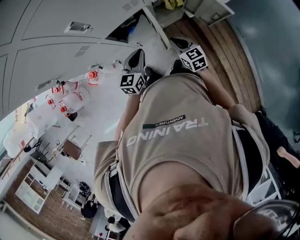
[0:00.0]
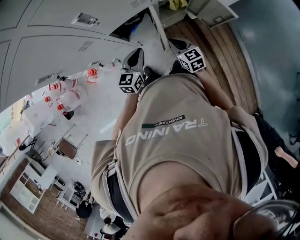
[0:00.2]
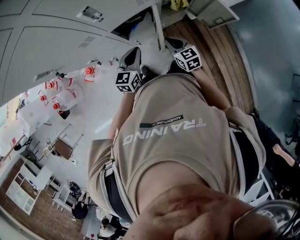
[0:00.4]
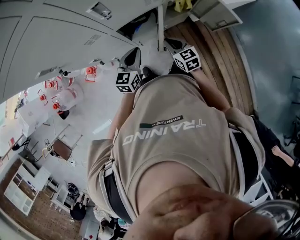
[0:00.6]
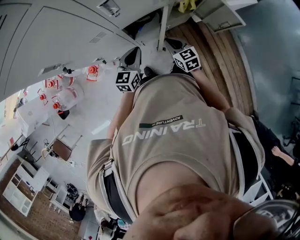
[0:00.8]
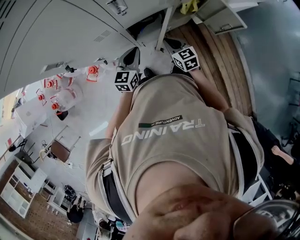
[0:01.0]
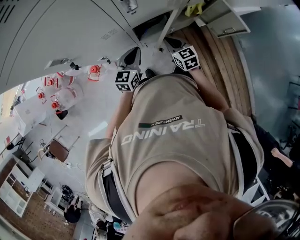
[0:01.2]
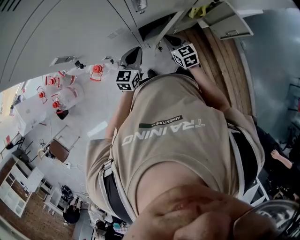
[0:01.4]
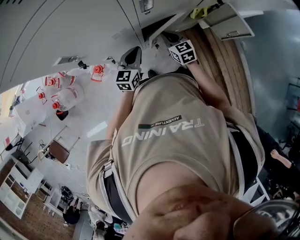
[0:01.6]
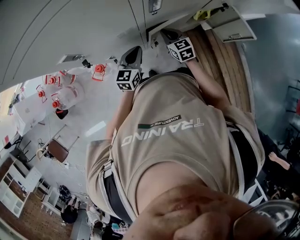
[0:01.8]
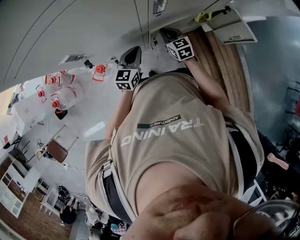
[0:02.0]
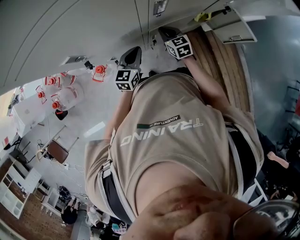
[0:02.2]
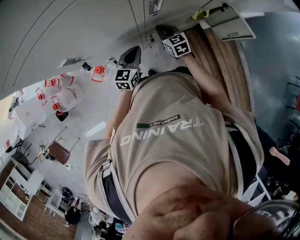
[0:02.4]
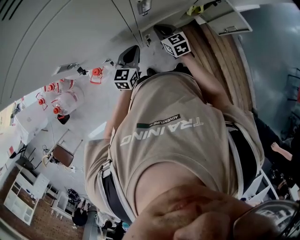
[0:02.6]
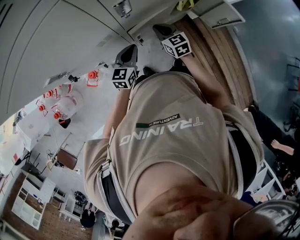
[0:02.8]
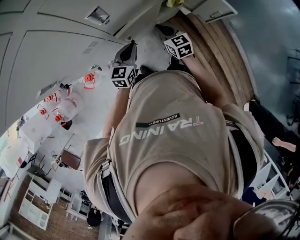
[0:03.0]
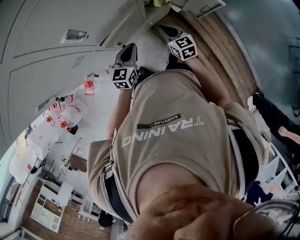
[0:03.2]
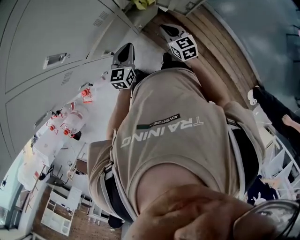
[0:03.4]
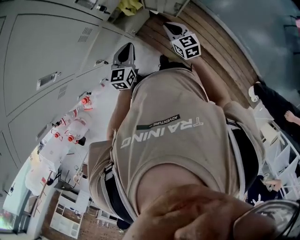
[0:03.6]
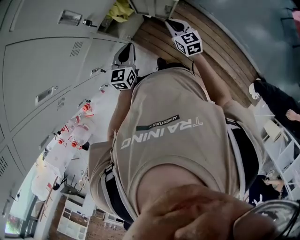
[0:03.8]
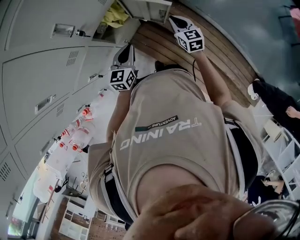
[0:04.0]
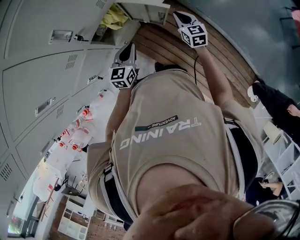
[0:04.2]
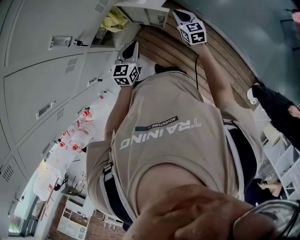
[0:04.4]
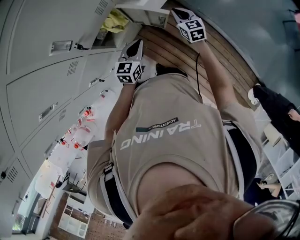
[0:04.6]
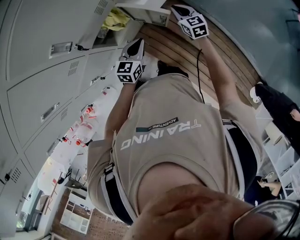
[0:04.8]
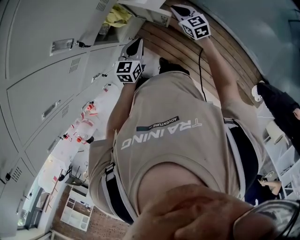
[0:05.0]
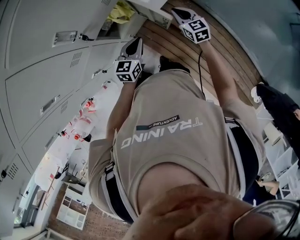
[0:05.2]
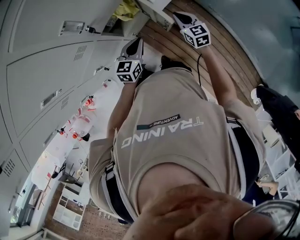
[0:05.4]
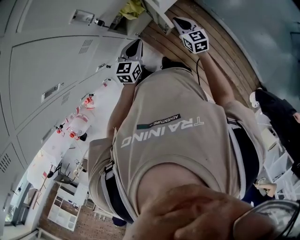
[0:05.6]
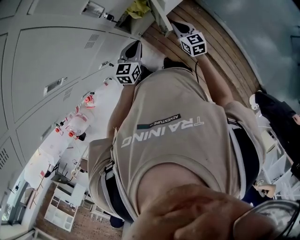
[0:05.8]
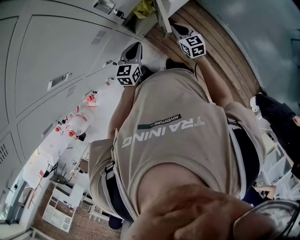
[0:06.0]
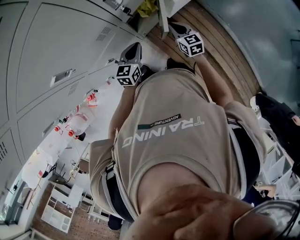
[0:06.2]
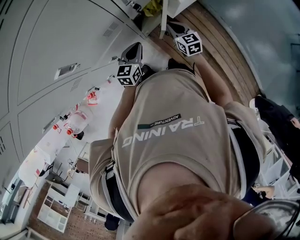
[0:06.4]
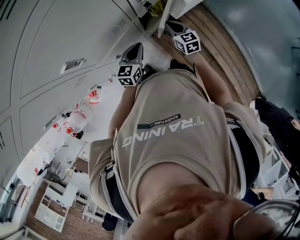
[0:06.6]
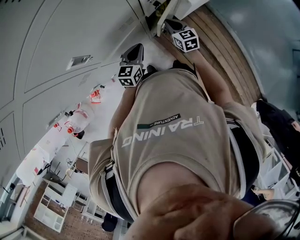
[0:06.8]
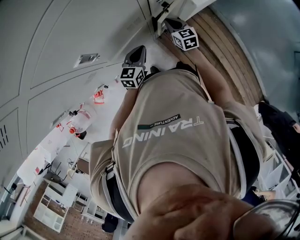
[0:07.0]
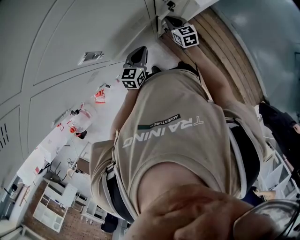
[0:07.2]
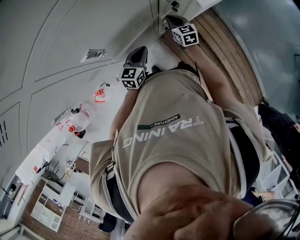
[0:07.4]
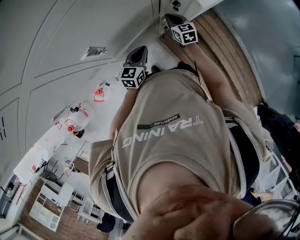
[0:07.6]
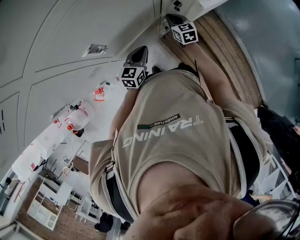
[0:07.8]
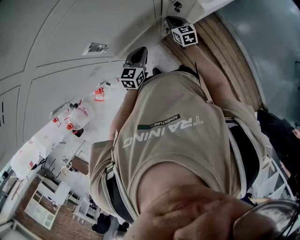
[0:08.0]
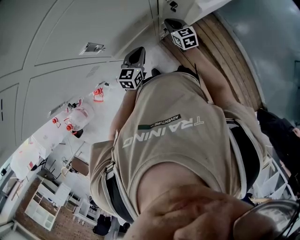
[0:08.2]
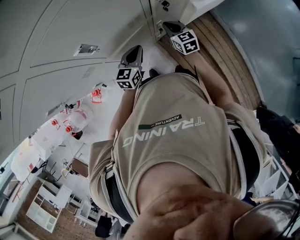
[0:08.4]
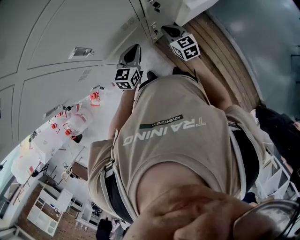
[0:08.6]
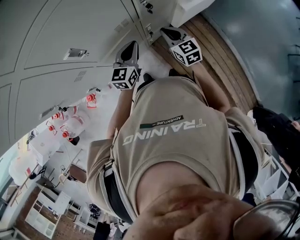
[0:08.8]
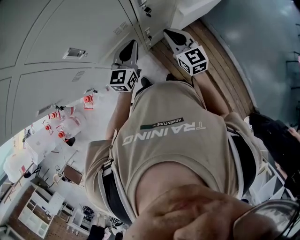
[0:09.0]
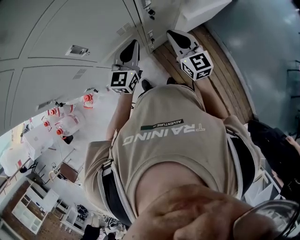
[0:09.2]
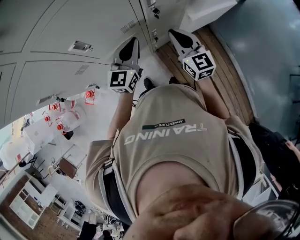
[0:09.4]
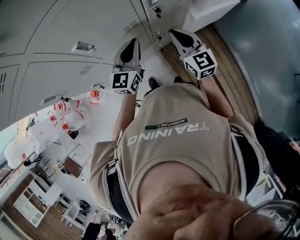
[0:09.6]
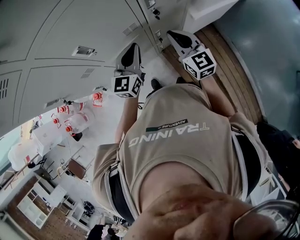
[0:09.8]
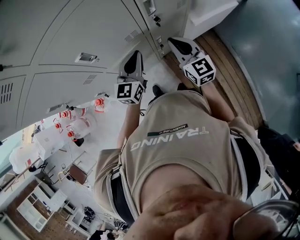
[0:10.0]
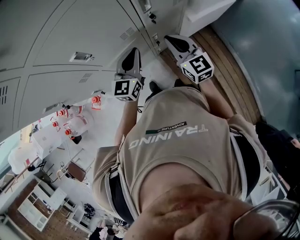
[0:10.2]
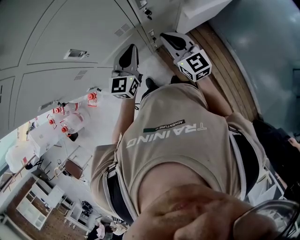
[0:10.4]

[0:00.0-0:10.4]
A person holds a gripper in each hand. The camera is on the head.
0:00.0 to 0:01.4: Both grippers travel together to the left, roughly 15 cm.
0:01.4 to 0:03.0: Both grippers move to the right, some 10 cm.
0:03.0 to 0:04.4: The right gripper heads to the right, covering roughly 50 cm, and changes its angle by approximately 30 degrees; the left gripper is displaced to the right and forward by roughly 40 cm.
0:04.4 to 0:06.0: The left gripper goes about 15 cm to the left; the right gripper moves to the left and backward, about 20 cm.
0:06.0 to 0:07.4: Both grippers travel together to the left, some 15 cm.
0:07.4 to 0:09.0: The left gripper is displaced upward and to the right by approximately 15 cm. Meanwhile the right gripper is displaced upward and backward by about 20 cm.
0:09.0 to 0:10.4: The grippers move only a little.

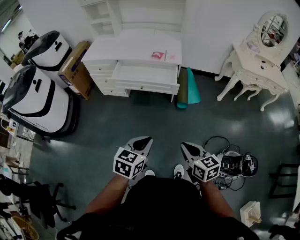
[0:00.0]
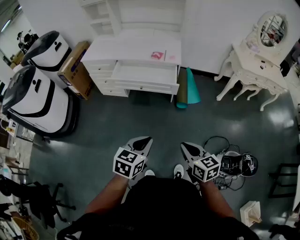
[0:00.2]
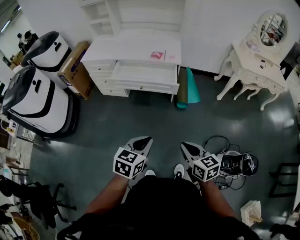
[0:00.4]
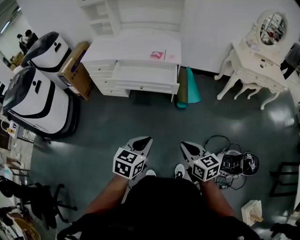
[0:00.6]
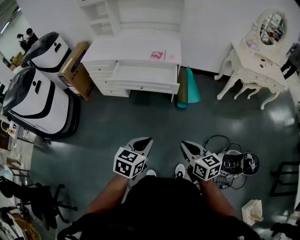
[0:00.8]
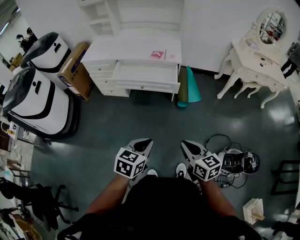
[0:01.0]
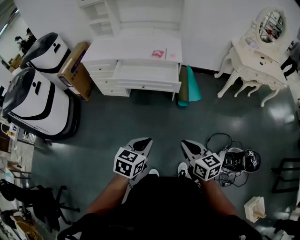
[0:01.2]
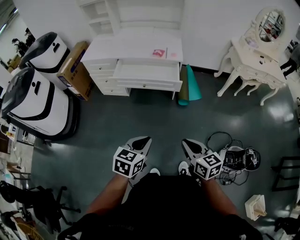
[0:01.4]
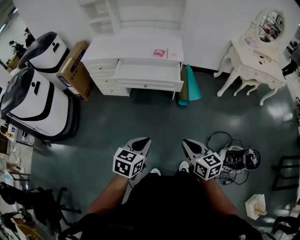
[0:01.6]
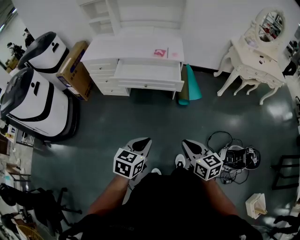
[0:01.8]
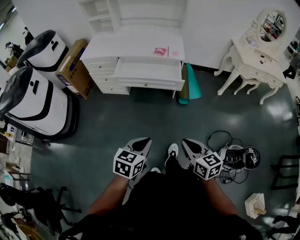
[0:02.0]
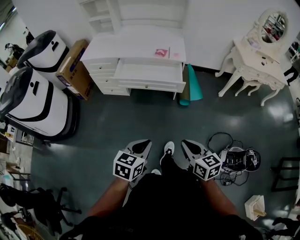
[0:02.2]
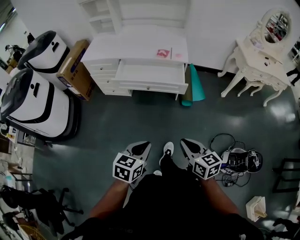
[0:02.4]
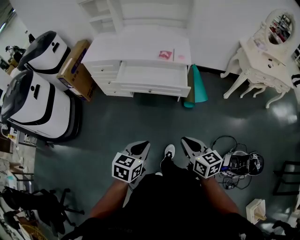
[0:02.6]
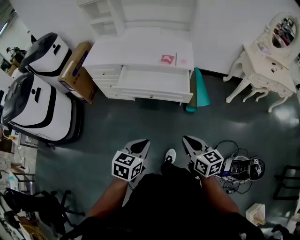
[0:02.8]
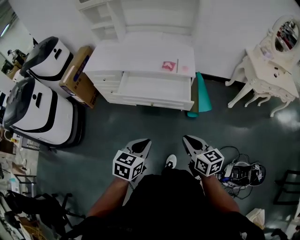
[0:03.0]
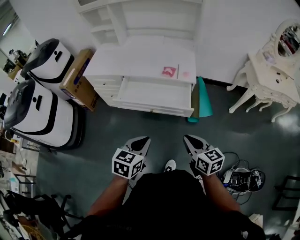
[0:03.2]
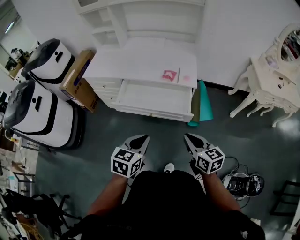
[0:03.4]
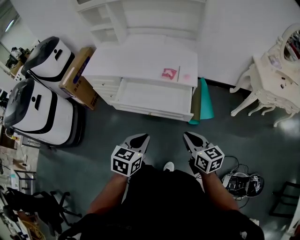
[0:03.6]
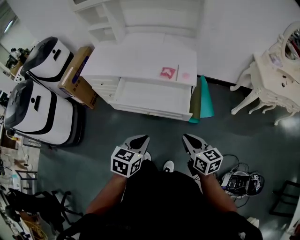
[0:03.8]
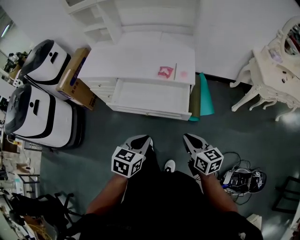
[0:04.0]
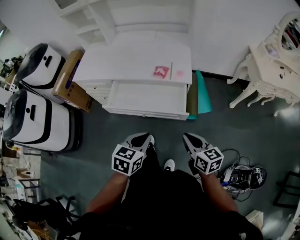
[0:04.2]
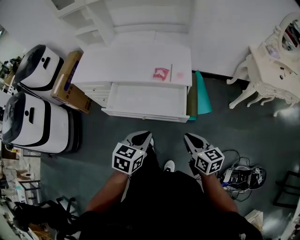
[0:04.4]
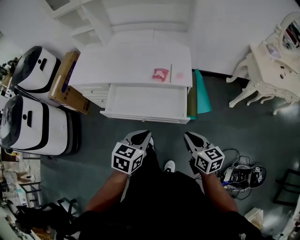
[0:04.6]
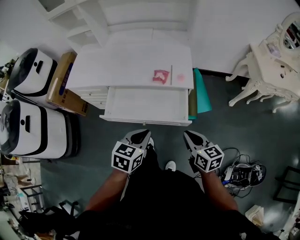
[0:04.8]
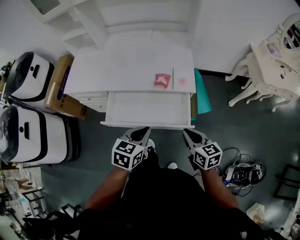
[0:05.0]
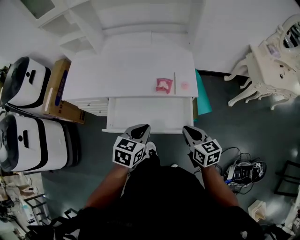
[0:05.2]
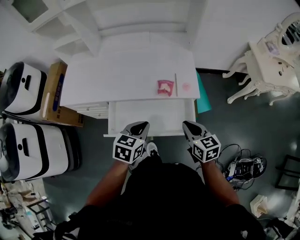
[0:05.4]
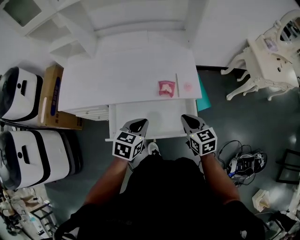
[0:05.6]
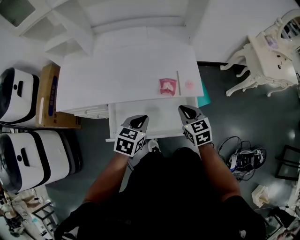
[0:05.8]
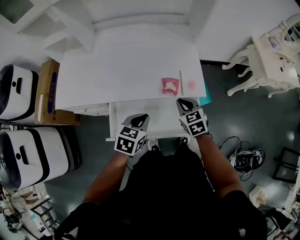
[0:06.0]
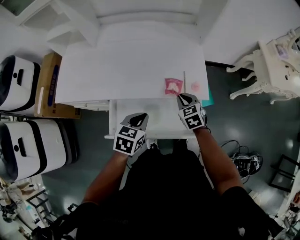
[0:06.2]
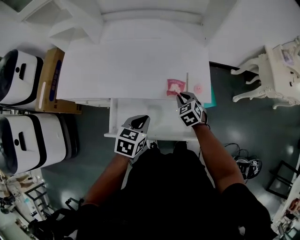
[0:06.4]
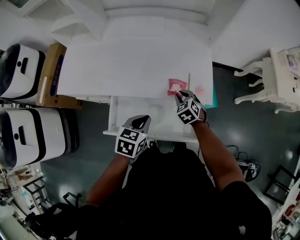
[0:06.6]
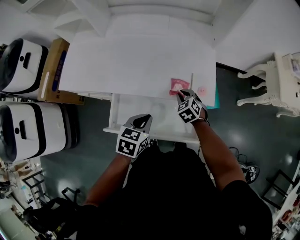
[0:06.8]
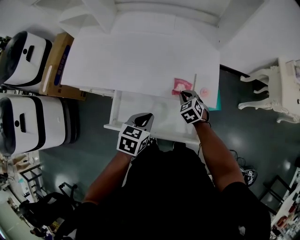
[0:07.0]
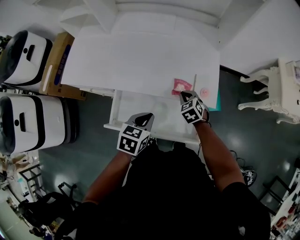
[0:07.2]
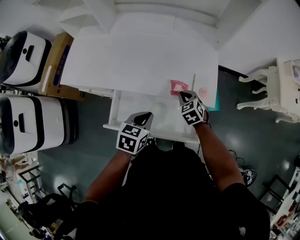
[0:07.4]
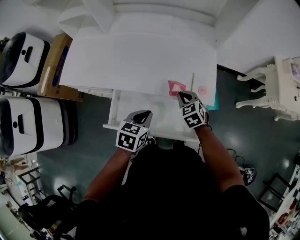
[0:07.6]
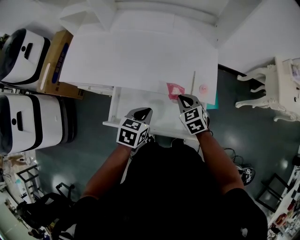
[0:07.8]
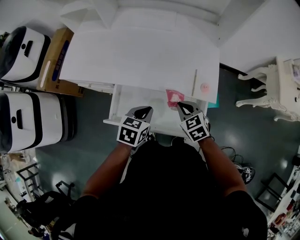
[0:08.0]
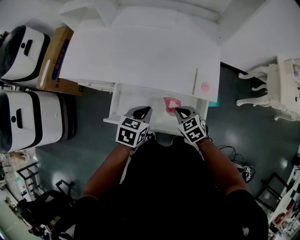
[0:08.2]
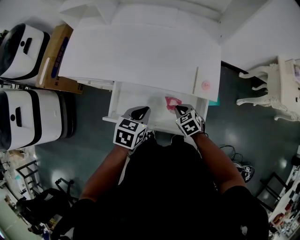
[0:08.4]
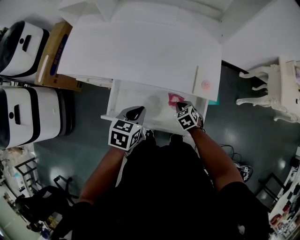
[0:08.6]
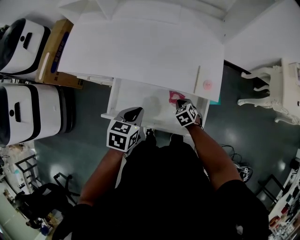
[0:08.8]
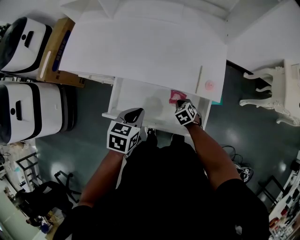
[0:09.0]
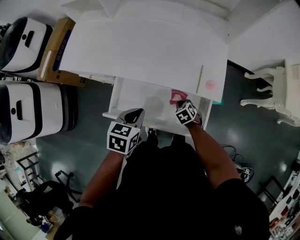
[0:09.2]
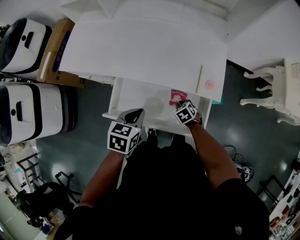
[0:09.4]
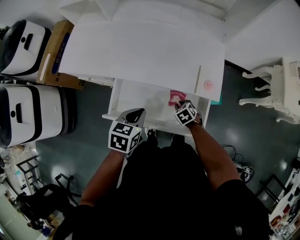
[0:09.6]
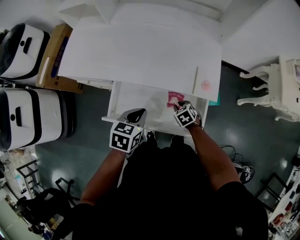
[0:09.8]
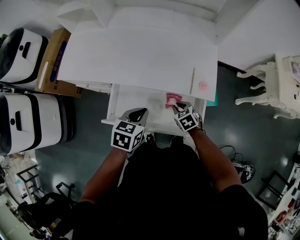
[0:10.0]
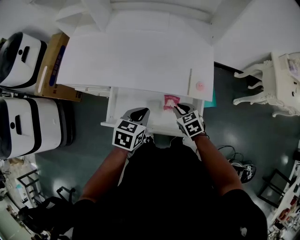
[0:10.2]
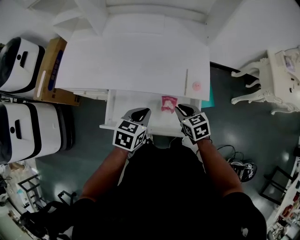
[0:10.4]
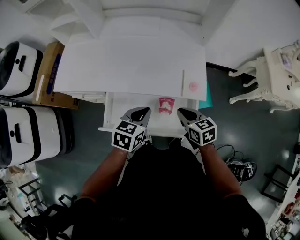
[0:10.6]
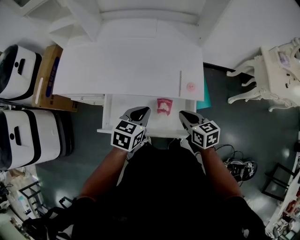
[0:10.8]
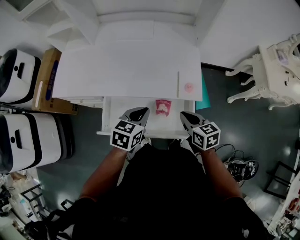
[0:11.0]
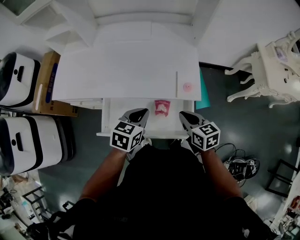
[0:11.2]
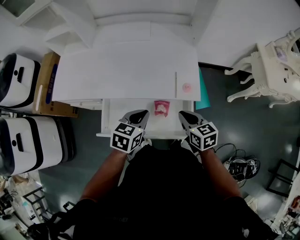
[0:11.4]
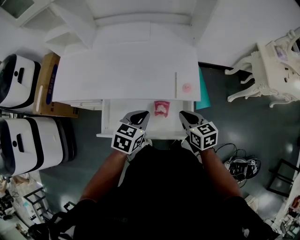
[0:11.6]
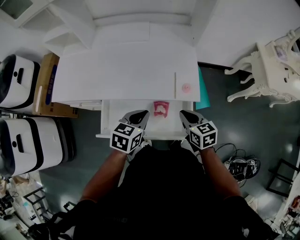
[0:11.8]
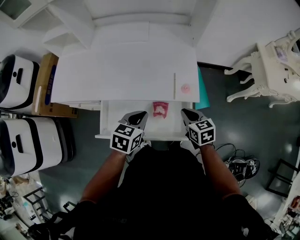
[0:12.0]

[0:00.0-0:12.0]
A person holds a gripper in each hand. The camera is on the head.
0:00.0 to 0:01.6: Both grippers move to the left, about 5 cm.
0:01.6 to 0:03.0: The two grippers go approximately 20 cm forward.
0:03.0 to 0:04.4: The left gripper moves forward, approximately 15 cm, while the right gripper shifts some 15 cm forward and to the right.
0:04.4 to 0:06.0: Both grippers move forward and to the left, some 30 cm. The right gripper swivels some 30 degrees.
0:07.6 to 0:09.0: The right gripper goes approximately 15 cm downward and backward.
0:09.0 to 0:10.4: The right gripper moves upward, roughly 15 cm, and rotates some 30 degrees. The left gripper travels to the right by about 5 cm.
0:10.4 to 0:12.0: The right gripper goes about 10 cm to the right.

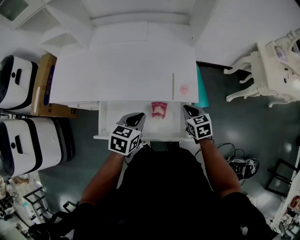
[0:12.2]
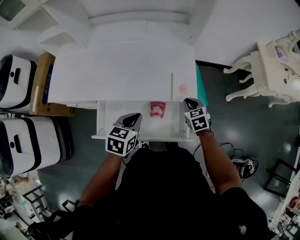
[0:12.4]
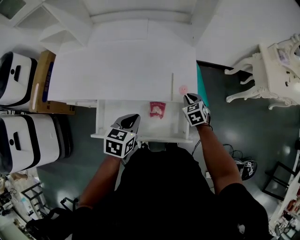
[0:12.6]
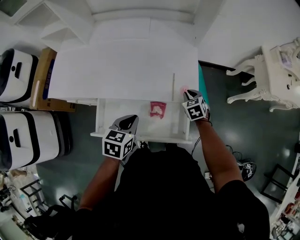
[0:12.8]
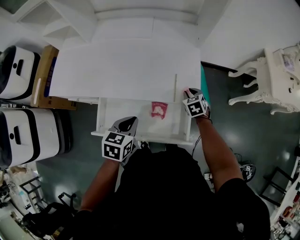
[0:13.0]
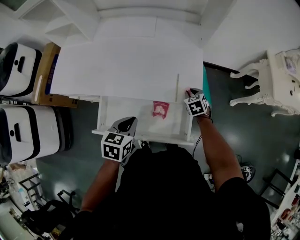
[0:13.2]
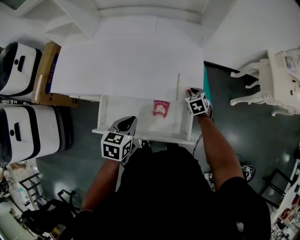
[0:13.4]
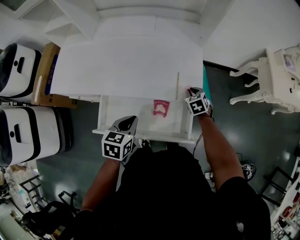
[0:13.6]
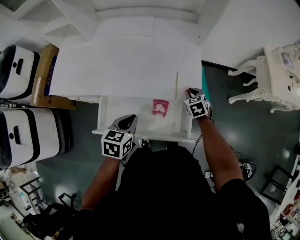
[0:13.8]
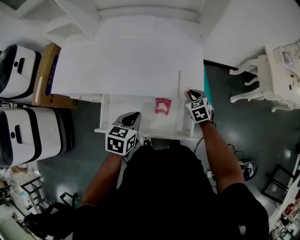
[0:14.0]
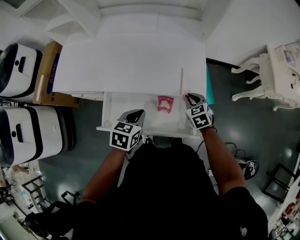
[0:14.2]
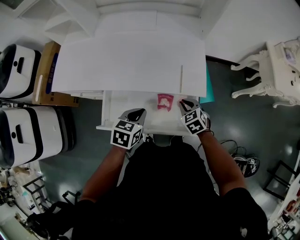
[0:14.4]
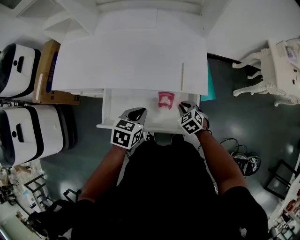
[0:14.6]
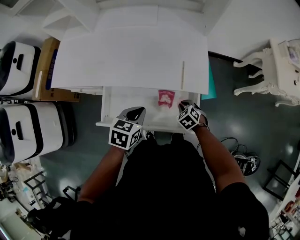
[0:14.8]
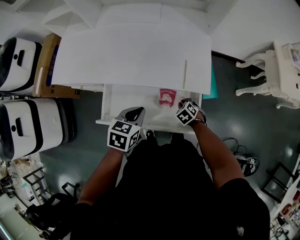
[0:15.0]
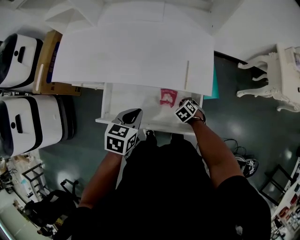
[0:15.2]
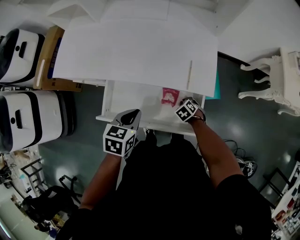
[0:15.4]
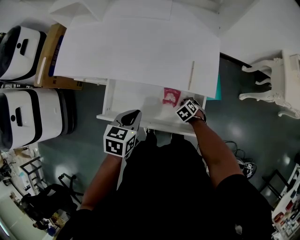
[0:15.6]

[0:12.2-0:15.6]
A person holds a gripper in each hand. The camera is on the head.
0:12.2 to 0:13.8: The right gripper goes some 10 cm forward and downward.
0:13.8 to 0:15.6: The right gripper goes roughly 15 cm downward, and rotates approximately 30 degrees.
